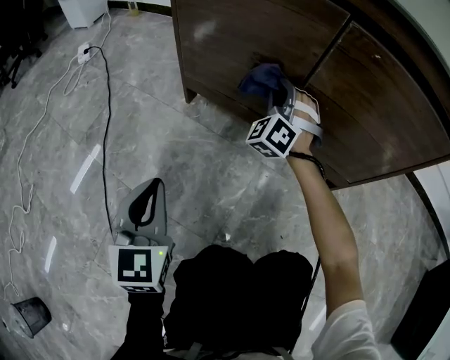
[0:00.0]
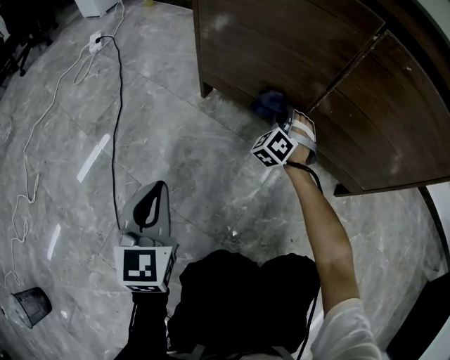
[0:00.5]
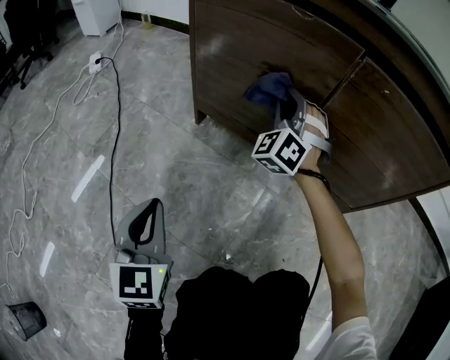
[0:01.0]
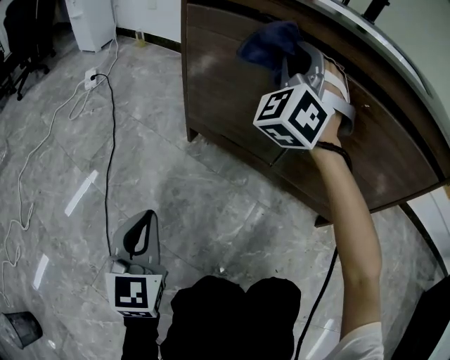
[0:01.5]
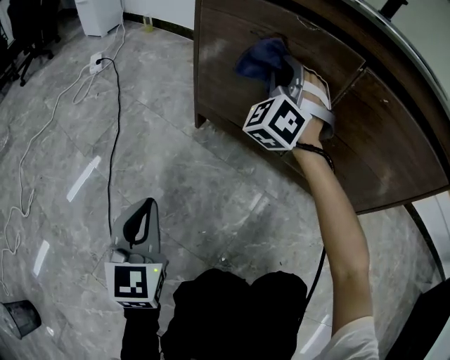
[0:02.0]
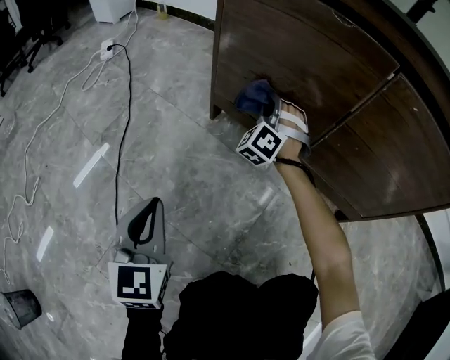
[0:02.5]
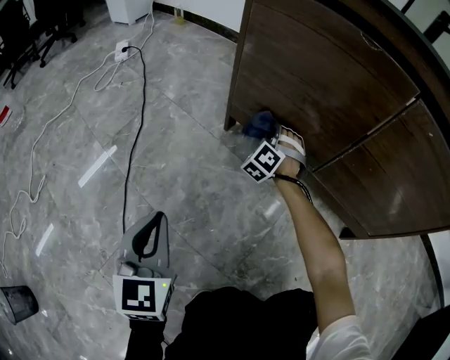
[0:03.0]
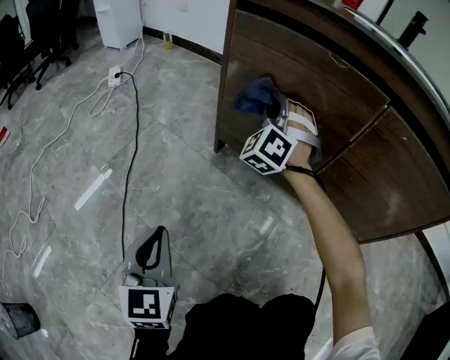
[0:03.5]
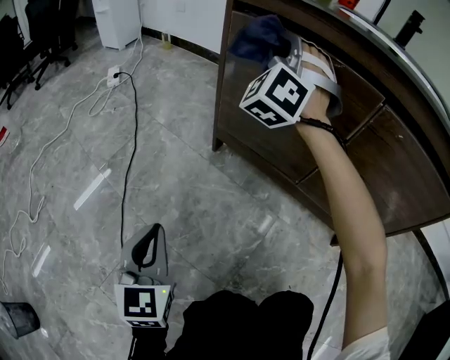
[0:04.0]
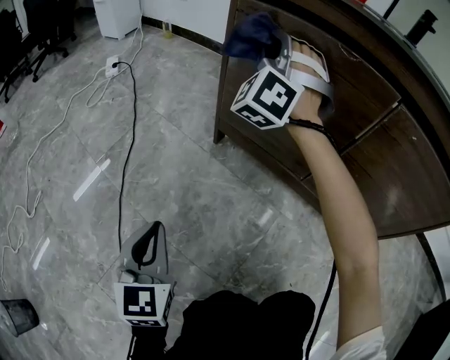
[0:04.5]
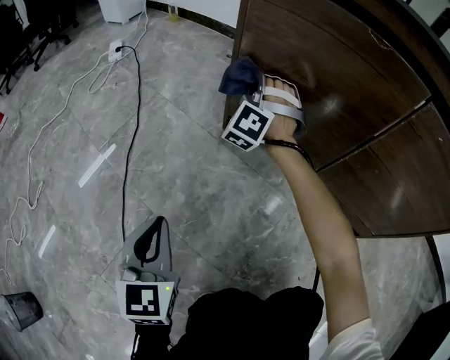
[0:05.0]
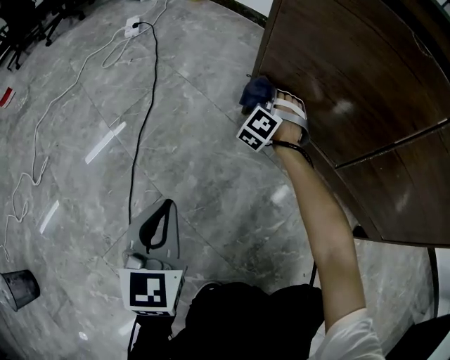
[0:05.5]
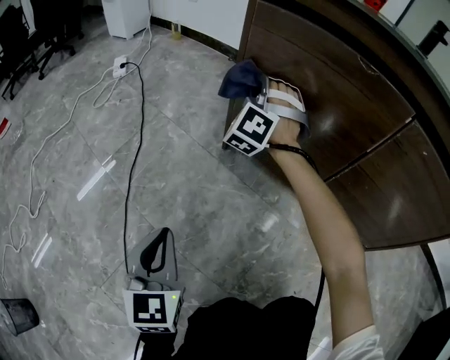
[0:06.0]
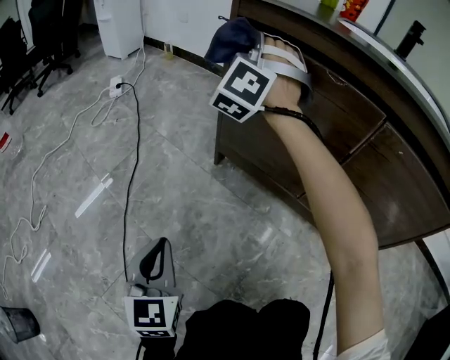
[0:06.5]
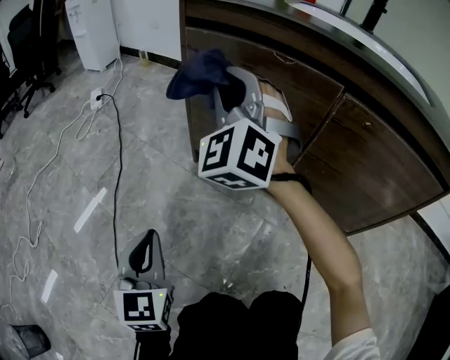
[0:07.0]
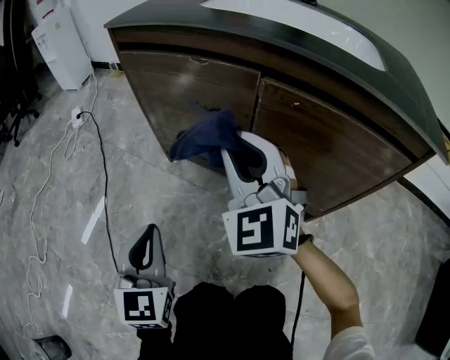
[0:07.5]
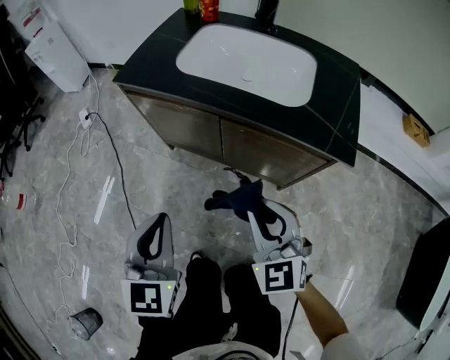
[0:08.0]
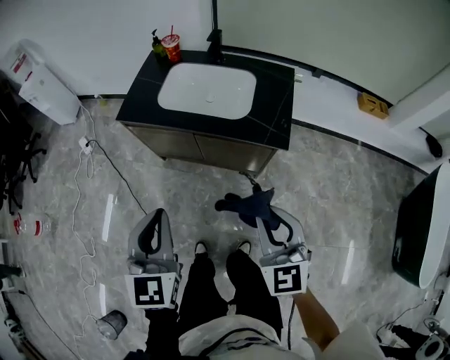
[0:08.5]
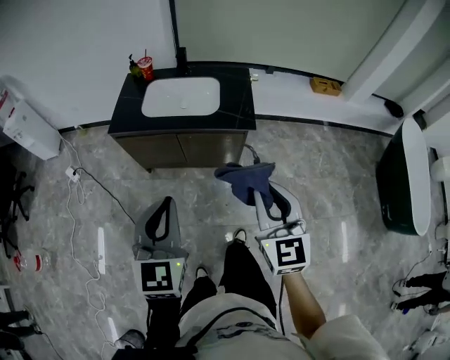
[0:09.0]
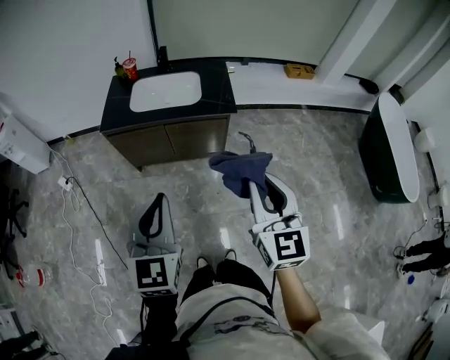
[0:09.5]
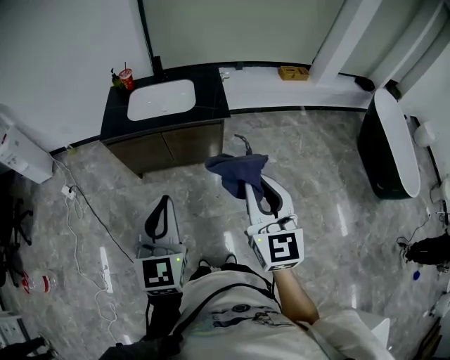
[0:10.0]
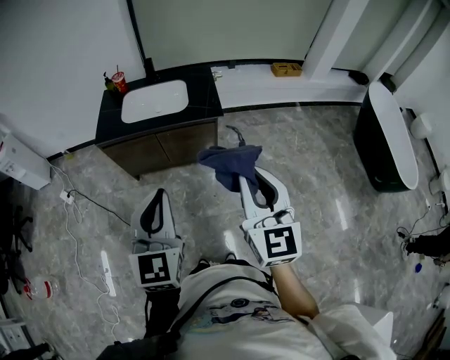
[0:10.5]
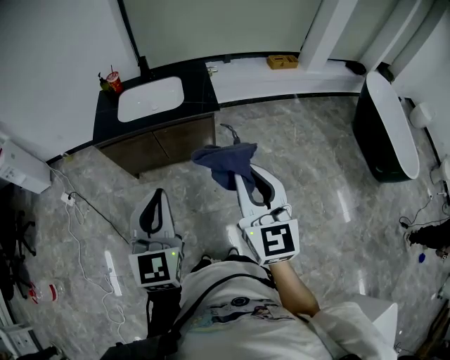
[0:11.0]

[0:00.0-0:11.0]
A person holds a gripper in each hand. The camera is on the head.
0:00.0 to 0:02.0: The right gripper moves up and down over approximately 40 cm, changing direction 2 times.
0:02.0 to 0:03.5: The right gripper goes roughly 5 cm to the left, and moves roughly 30 cm downward and comes back.
0:03.5 to 0:05.5: The left gripper ends up roughly 5 cm from where it was. Meanwhile the right gripper heads downward, covering about 25 cm.
0:05.5 to 0:07.5: The left gripper heads to the right and upward, covering approximately 25 cm, while the right gripper moves upward, backward and to the right, roughly 50 cm, and twists approximately 40 degrees clockwise, seen from behind.
0:07.5 to 0:09.0: The grippers both shift upward by about 60 cm. The left gripper swivels roughly 30 degrees. Meanwhile the right gripper changes its angle by some 40 degrees.
0:09.0 to 0:11.0: The grippers both shift backward and upward by approximately 15 cm.

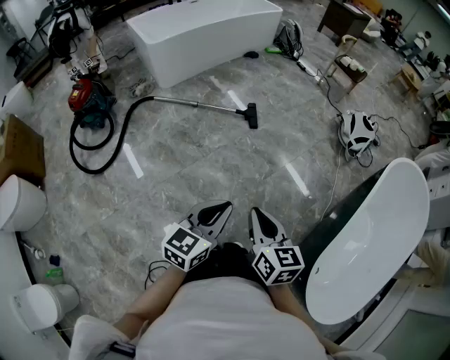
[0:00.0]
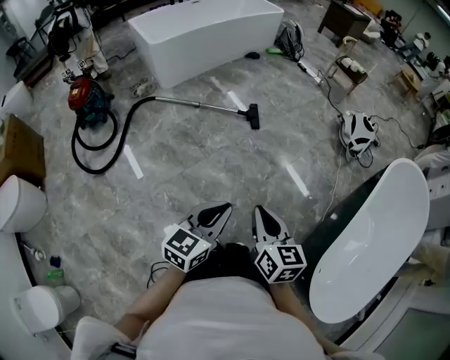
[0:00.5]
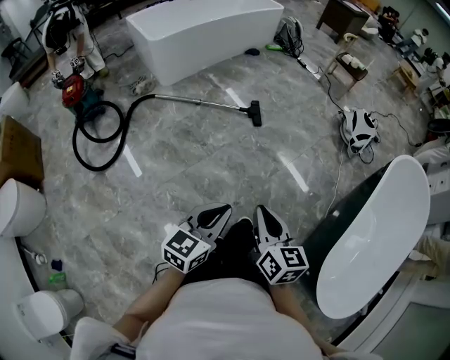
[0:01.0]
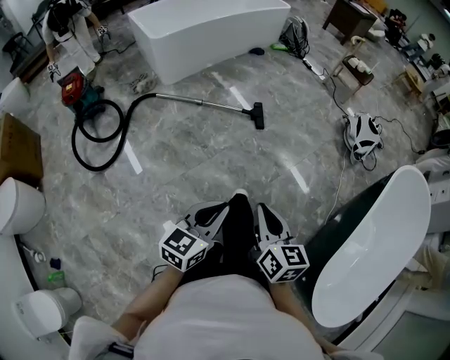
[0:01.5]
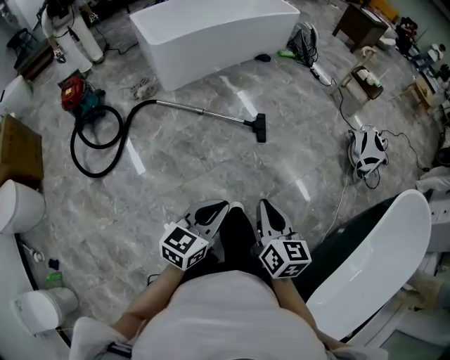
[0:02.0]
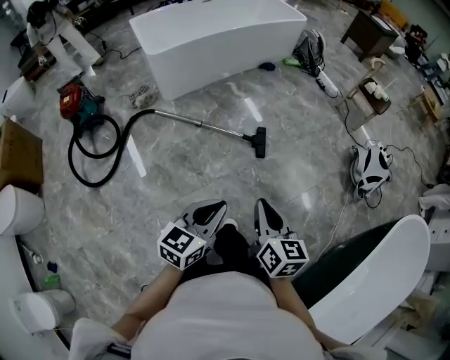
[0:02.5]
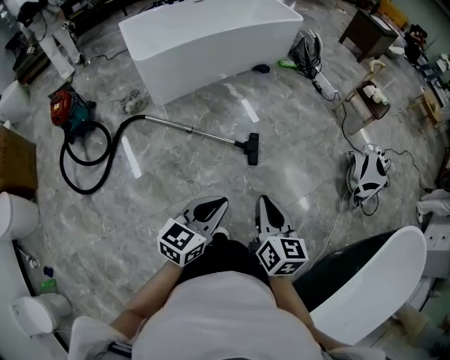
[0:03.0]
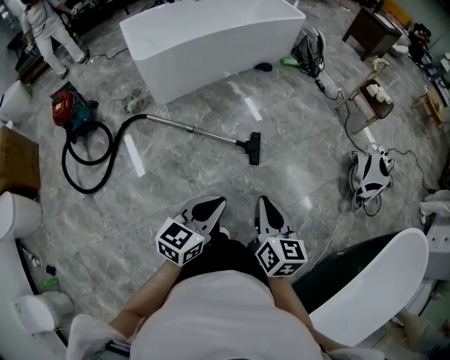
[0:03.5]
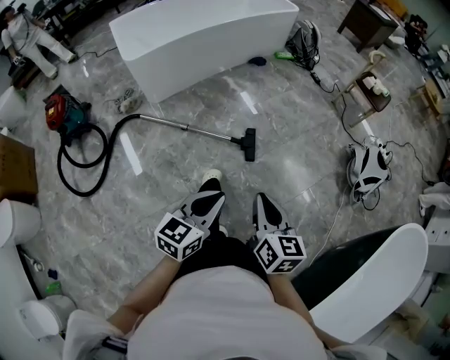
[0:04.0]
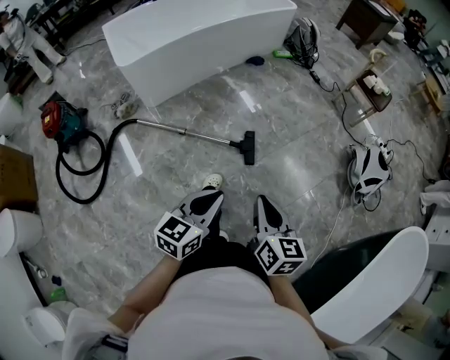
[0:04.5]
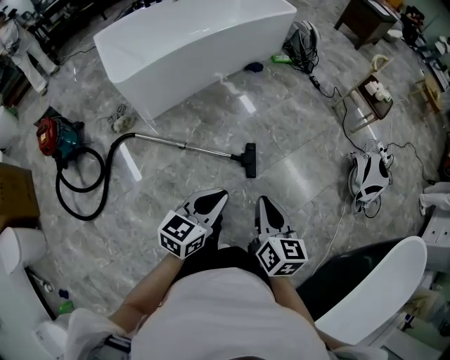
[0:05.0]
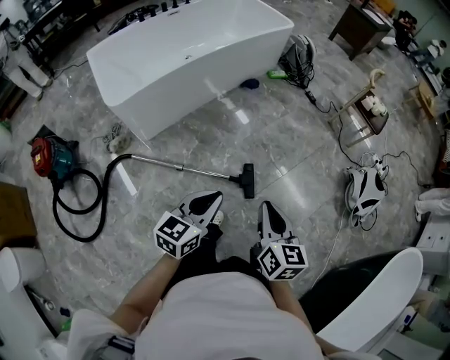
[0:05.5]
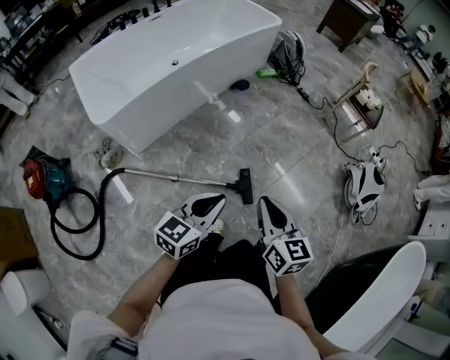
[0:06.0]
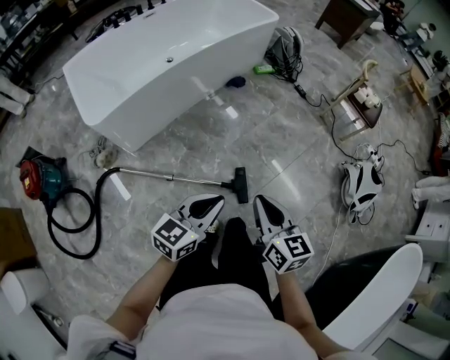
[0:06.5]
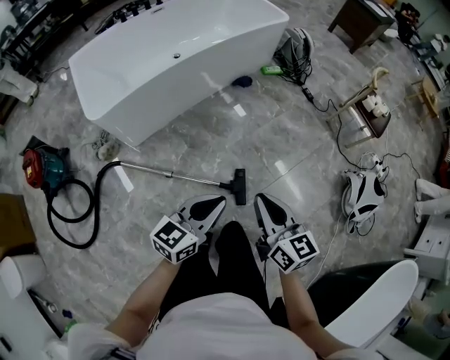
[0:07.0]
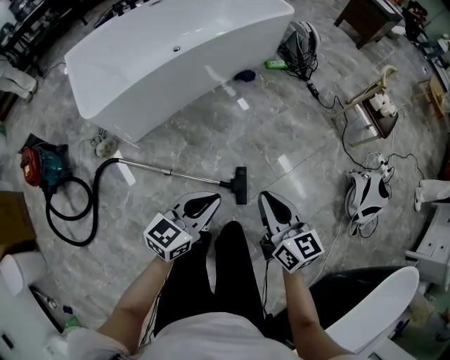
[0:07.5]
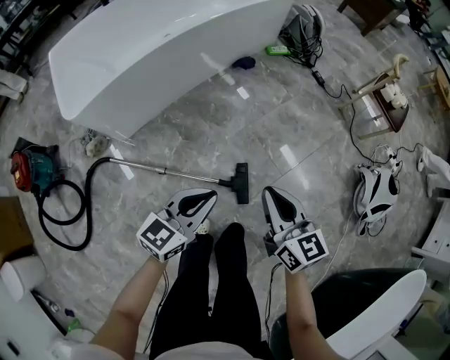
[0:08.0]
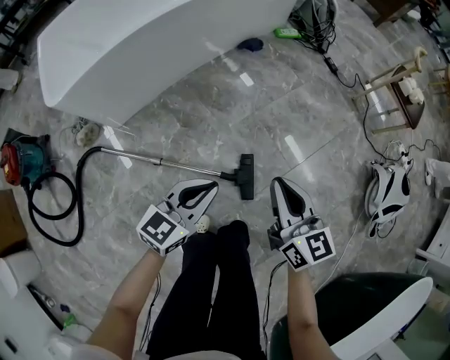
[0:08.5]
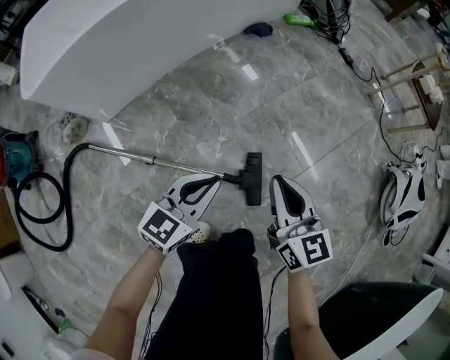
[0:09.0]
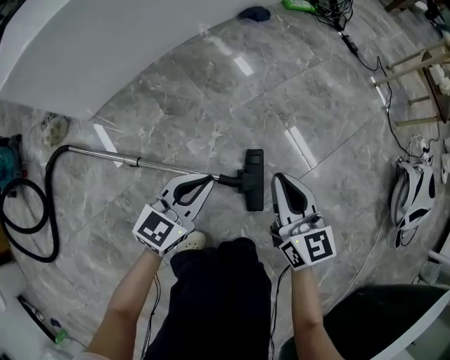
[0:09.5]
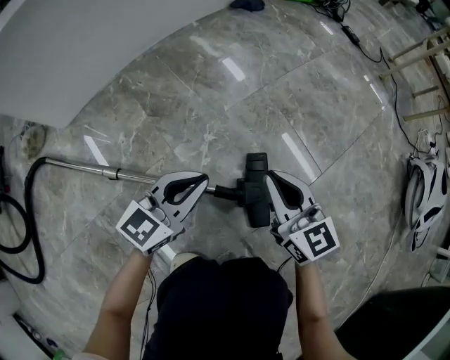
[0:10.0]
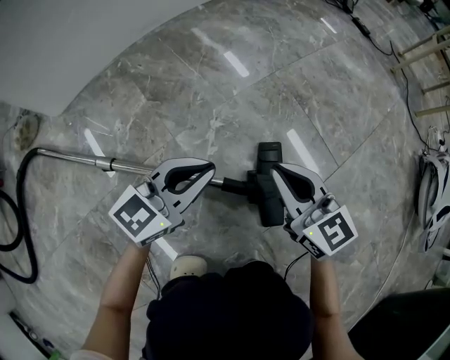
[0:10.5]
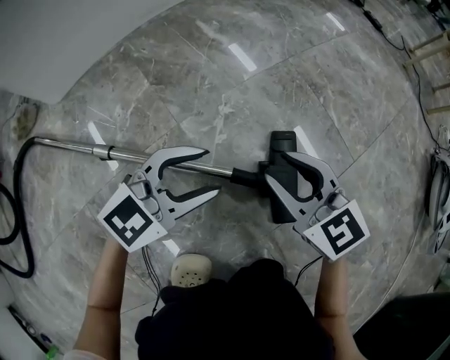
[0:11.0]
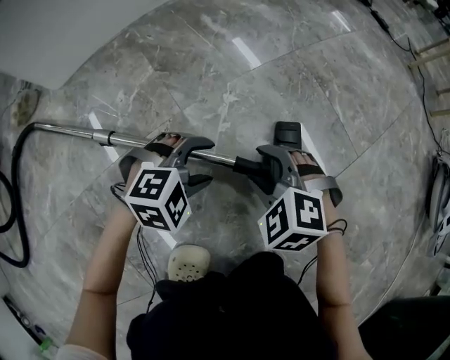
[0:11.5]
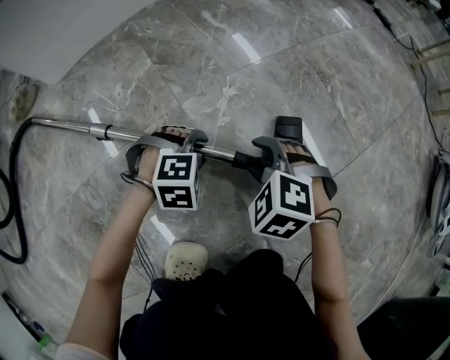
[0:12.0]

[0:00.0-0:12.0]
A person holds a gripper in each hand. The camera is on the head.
0:00.0 to 0:02.0: The left gripper travels forward and to the left by about 20 cm. The right gripper travels forward by approximately 20 cm.
0:02.0 to 0:04.0: The grippers both shift forward by about 25 cm.
0:04.0 to 0:06.0: Both grippers travel together forward and to the left, approximately 30 cm.
0:06.0 to 0:08.0: Both grippers travel together forward and downward, about 15 cm.
0:08.0 to 0:10.0: Both grippers move downward, some 50 cm.
0:10.0 to 0:12.0: Both grippers travel together downward, roughly 20 cm. The left gripper angles its fingers downward, by some 60 degrees, and opens. Meanwhile the right gripper tips its fingers downward by approximately 50 degrees, and opens its fingers.

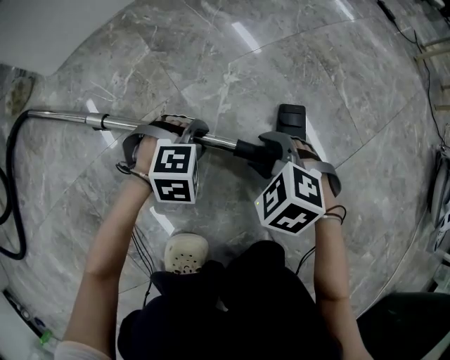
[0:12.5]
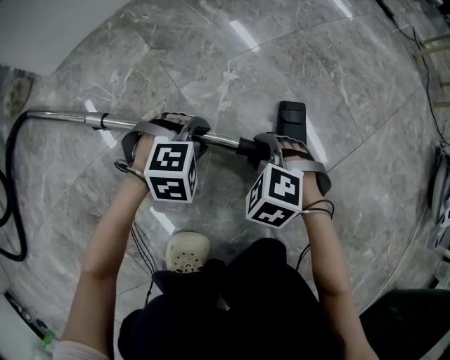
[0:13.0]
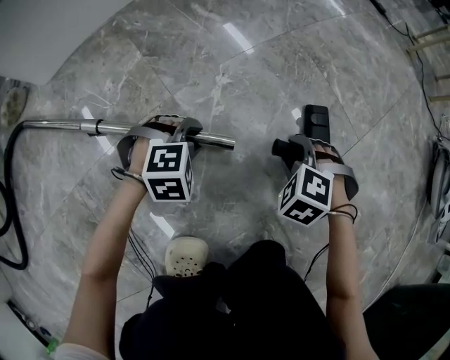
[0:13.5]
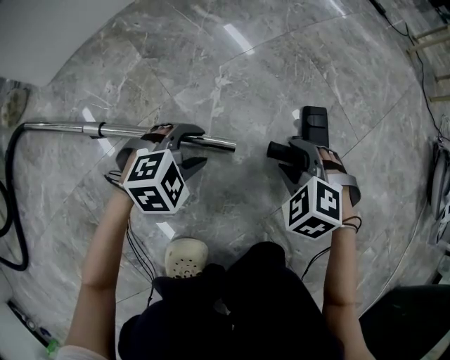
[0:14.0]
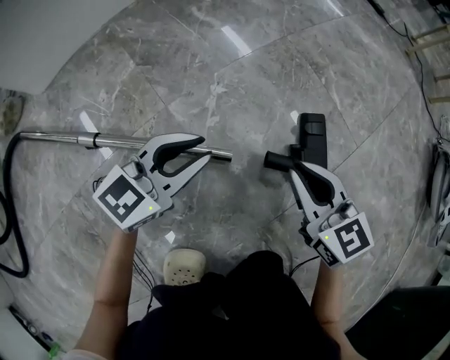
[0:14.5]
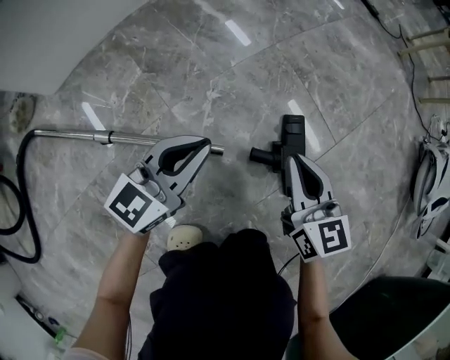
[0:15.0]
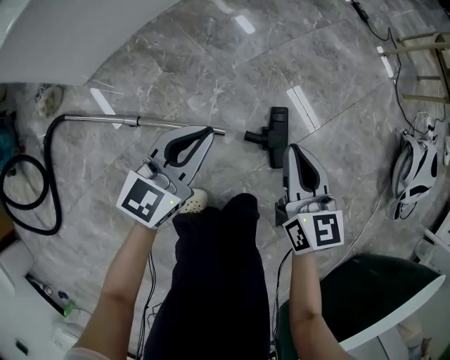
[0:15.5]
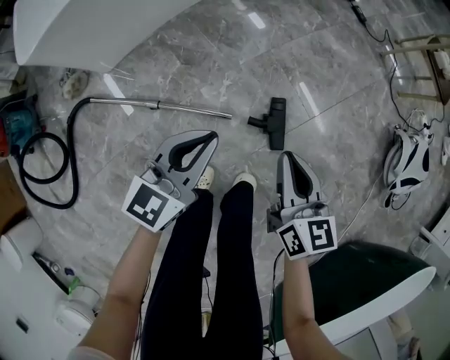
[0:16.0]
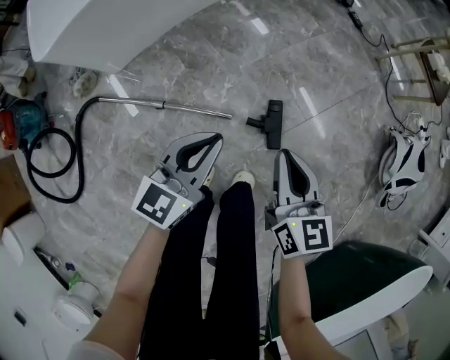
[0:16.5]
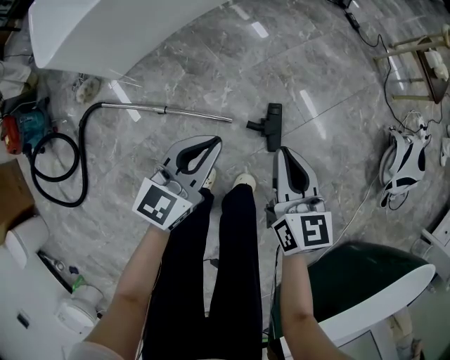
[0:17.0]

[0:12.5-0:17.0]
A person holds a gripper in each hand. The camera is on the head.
0:12.5 to 0:14.5: The right gripper travels to the right and upward by about 10 cm, tilts its fingers approximately 40 degrees upward, and closes its fingers, while the left gripper goes some 10 cm upward, and points its fingers roughly 50 degrees further upward.
0:14.5 to 0:17.0: Both grippers travel together upward, approximately 50 cm. The right gripper swivels roughly 20 degrees; the left gripper closes up.
